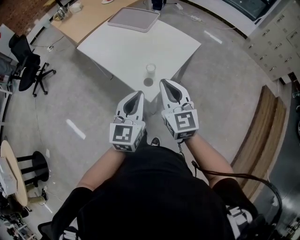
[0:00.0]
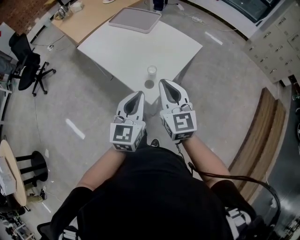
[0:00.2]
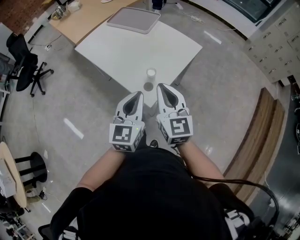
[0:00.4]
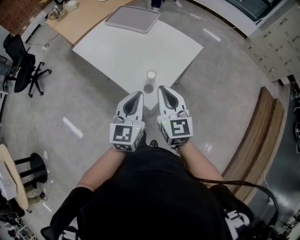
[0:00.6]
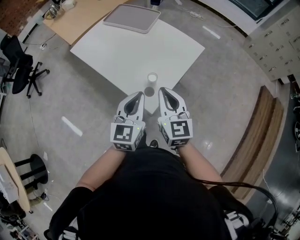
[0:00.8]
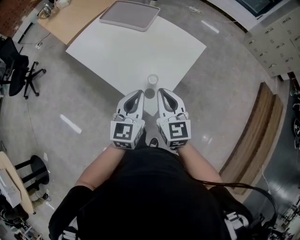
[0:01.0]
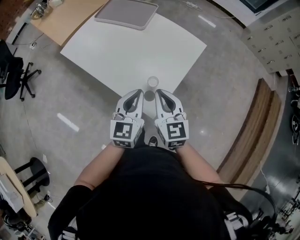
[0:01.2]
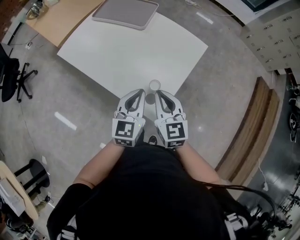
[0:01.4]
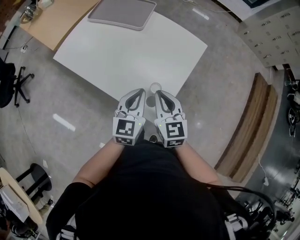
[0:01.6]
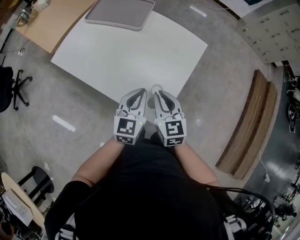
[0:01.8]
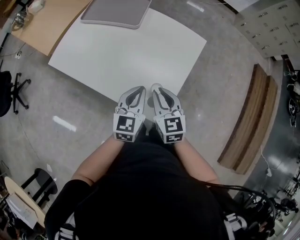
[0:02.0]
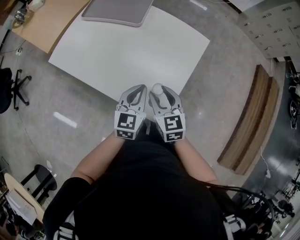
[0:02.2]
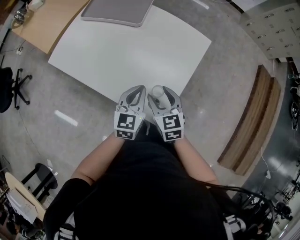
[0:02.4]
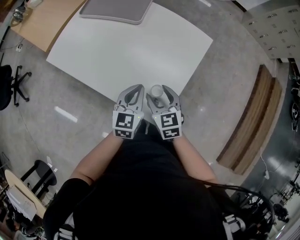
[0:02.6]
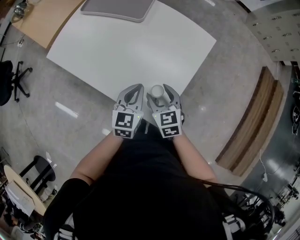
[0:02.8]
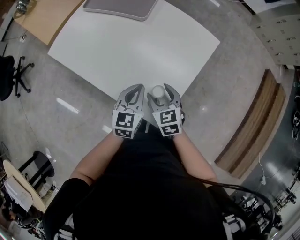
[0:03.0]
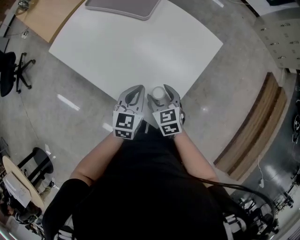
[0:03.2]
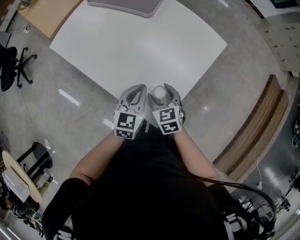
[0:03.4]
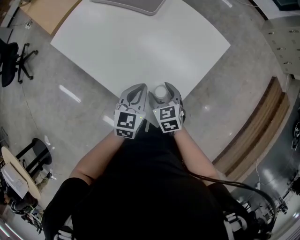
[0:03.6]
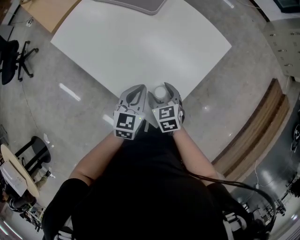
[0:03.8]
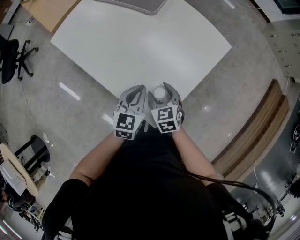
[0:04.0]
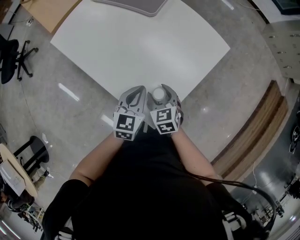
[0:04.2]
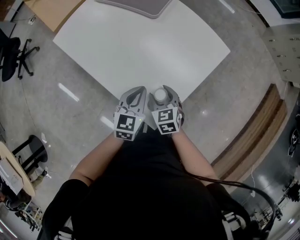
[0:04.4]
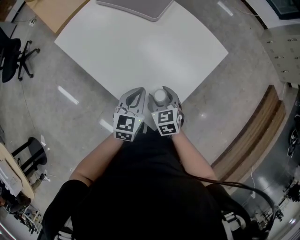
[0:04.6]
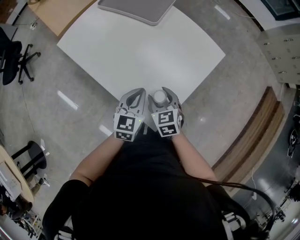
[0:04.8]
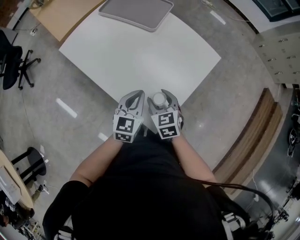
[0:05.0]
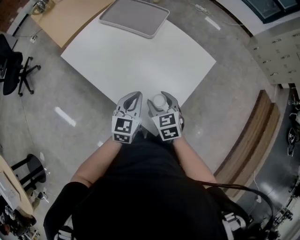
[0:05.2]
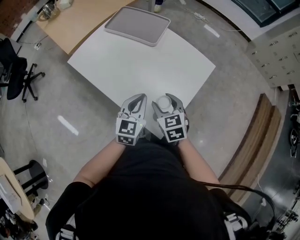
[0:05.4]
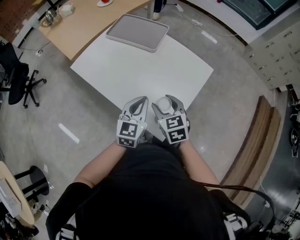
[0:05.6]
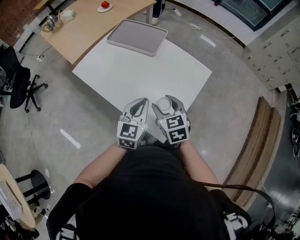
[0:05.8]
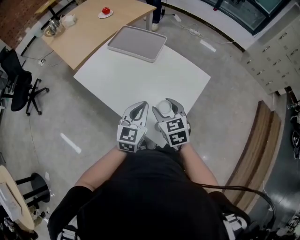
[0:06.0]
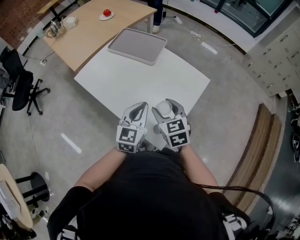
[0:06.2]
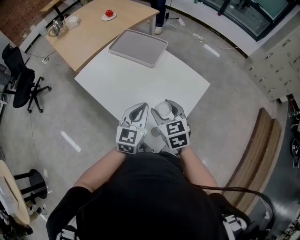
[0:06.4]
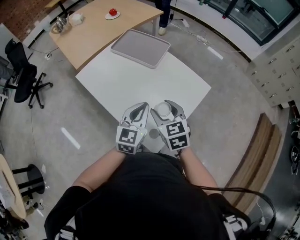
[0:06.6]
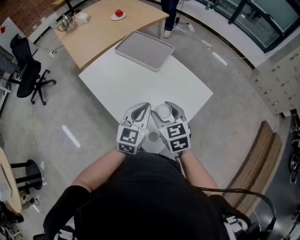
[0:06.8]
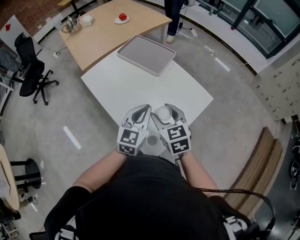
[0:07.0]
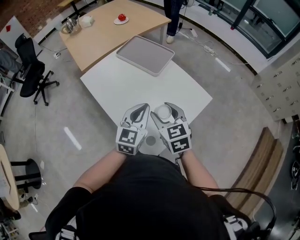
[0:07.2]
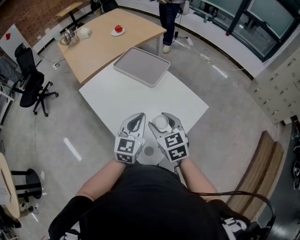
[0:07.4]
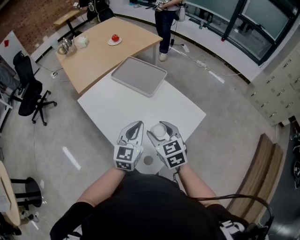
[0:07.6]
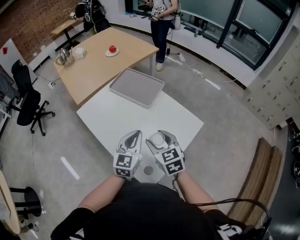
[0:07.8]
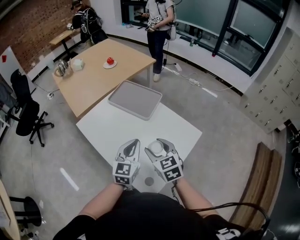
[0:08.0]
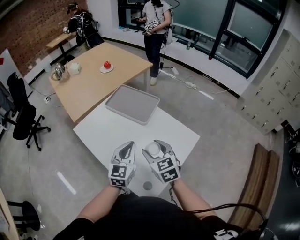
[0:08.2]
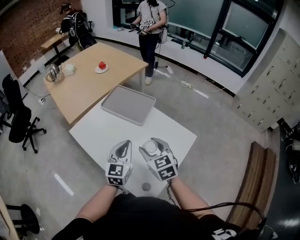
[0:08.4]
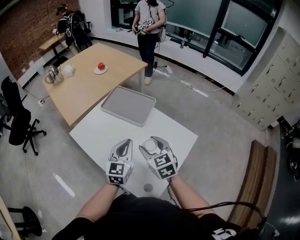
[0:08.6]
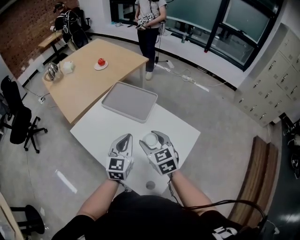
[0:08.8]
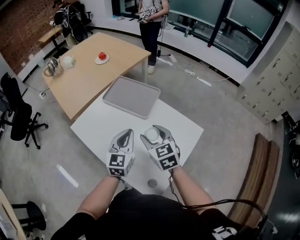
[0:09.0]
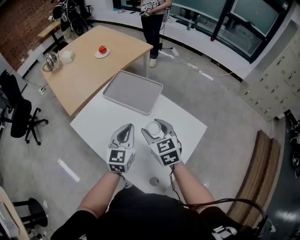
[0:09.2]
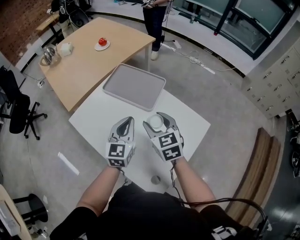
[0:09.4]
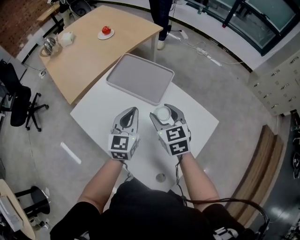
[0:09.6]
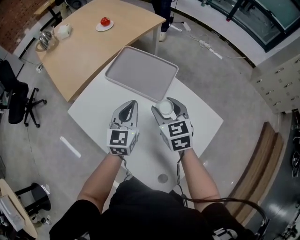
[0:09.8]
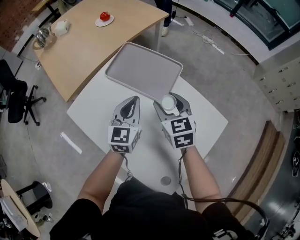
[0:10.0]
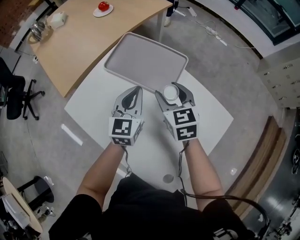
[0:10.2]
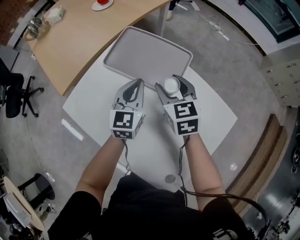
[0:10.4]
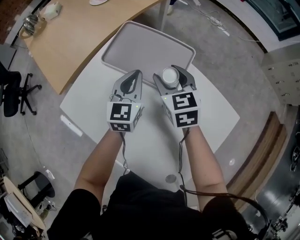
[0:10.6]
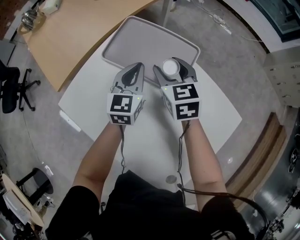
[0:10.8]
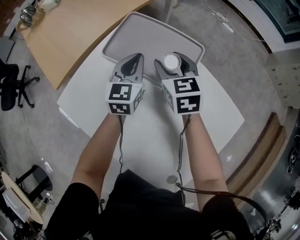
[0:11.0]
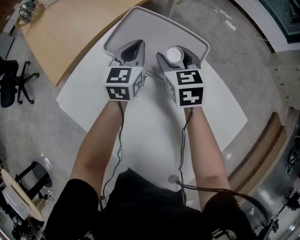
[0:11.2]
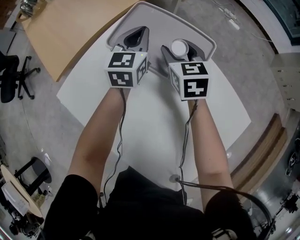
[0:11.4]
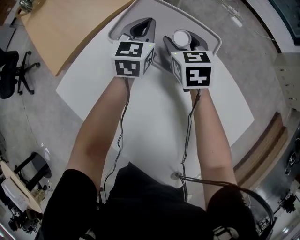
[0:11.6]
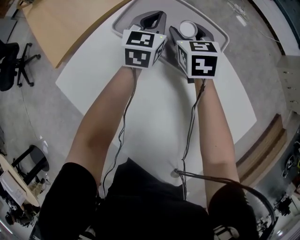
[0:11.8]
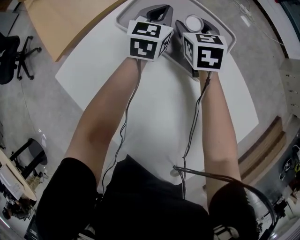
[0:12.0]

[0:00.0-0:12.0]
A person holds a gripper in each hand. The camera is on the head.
0:00.0 to 0:01.6: The left gripper goes some 25 cm forward and downward, while the right gripper travels forward, downward and to the left by about 25 cm, and swivels roughly 20 degrees.
0:01.6 to 0:03.0: The left gripper goes some 10 cm downward and forward. Meanwhile the right gripper heads downward, covering some 15 cm, rotates about 20 degrees, and opens its fingers.
0:03.0 to 0:04.4: The grippers stay close to where they were, moving slightly.
0:04.4 to 0:06.0: The grippers both shift upward by roughly 20 cm.
0:06.0 to 0:07.6: The two grippers go roughly 5 cm forward.
0:07.6 to 0:09.0: Both grippers travel together forward, about 10 cm.
0:09.0 to 0:10.4: Both grippers travel together forward and downward, roughly 30 cm.
0:10.4 to 0:12.0: Both grippers travel together forward and downward, approximately 20 cm.

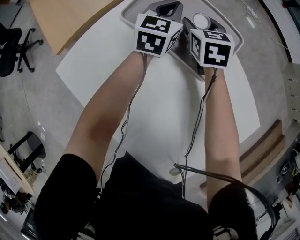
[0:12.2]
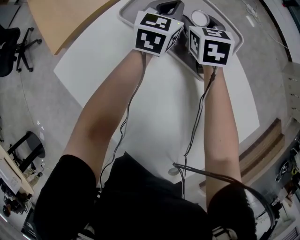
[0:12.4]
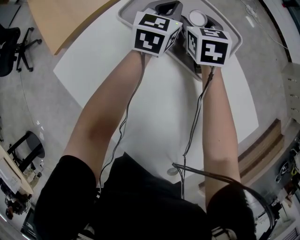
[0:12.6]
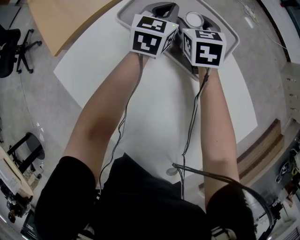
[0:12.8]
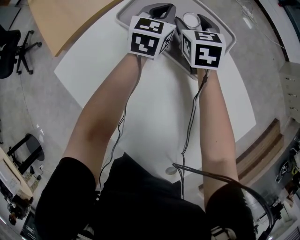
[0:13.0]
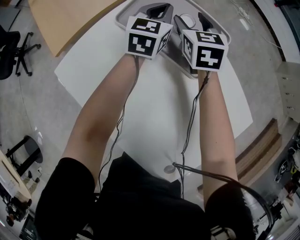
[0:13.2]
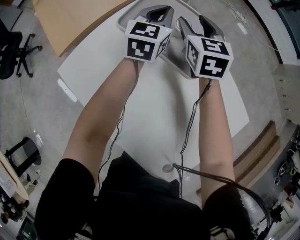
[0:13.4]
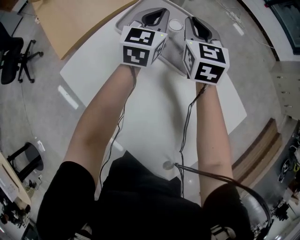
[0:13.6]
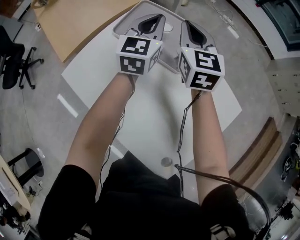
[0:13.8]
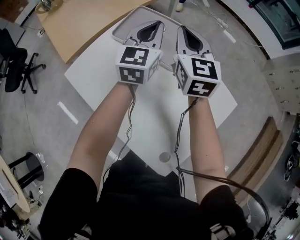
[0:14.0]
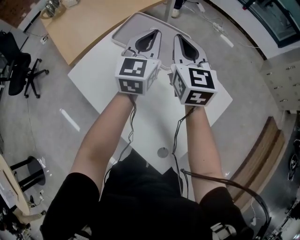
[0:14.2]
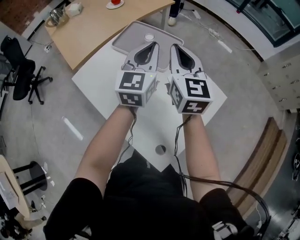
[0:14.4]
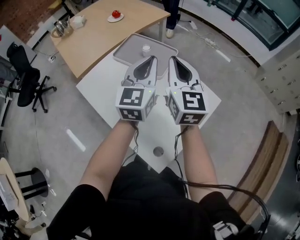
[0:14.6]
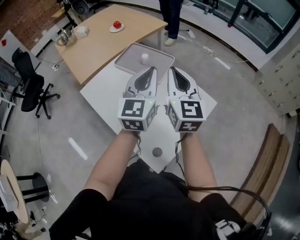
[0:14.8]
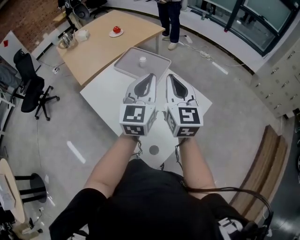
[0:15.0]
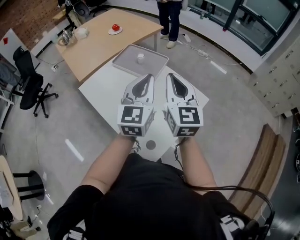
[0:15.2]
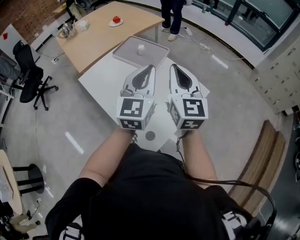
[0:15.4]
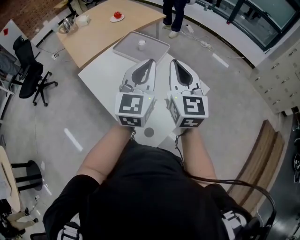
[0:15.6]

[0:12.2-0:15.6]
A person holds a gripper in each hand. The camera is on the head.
0:12.2 to 0:13.8: Both grippers move upward and backward, some 20 cm. The right gripper changes its angle by some 20 degrees, and closes its fingers.
0:13.8 to 0:15.6: The pair of grippers is taken backward and to the right, some 40 cm. The grippers both shift upward by some 20 cm.

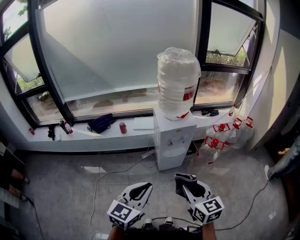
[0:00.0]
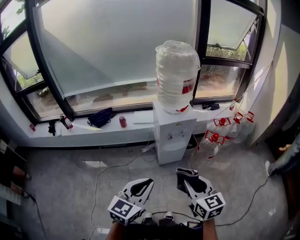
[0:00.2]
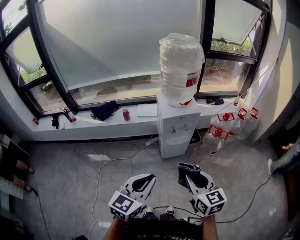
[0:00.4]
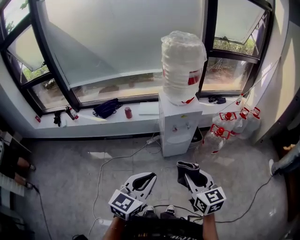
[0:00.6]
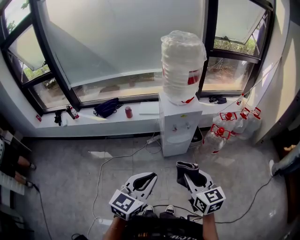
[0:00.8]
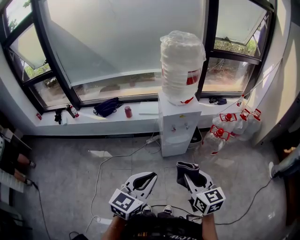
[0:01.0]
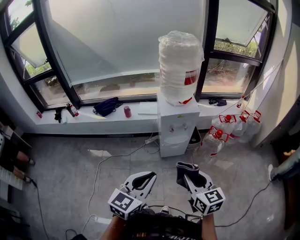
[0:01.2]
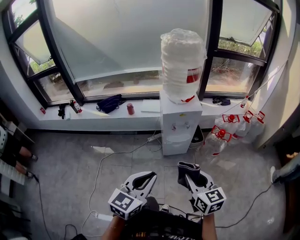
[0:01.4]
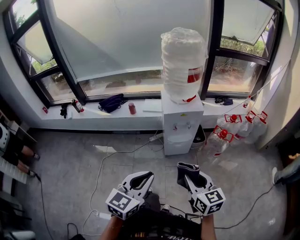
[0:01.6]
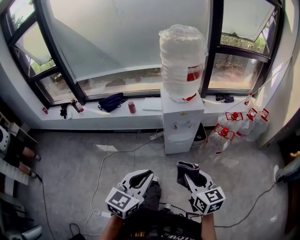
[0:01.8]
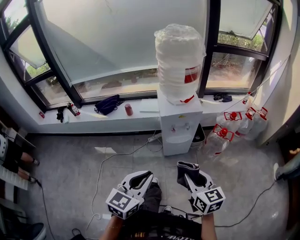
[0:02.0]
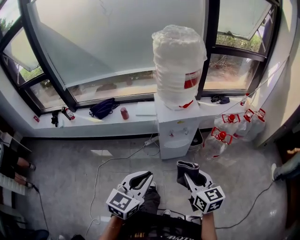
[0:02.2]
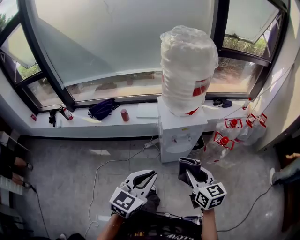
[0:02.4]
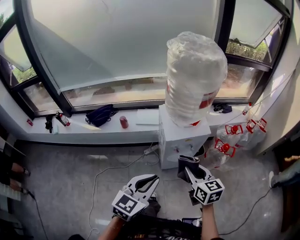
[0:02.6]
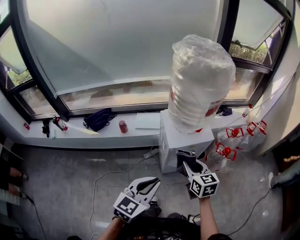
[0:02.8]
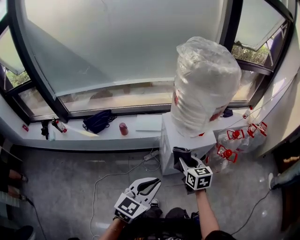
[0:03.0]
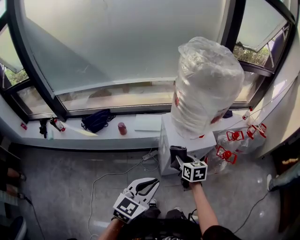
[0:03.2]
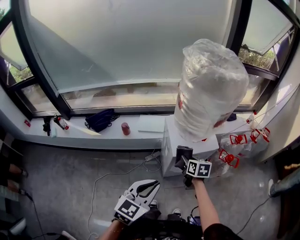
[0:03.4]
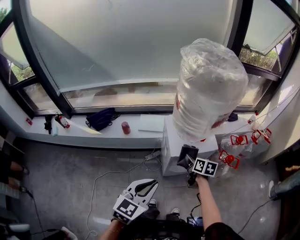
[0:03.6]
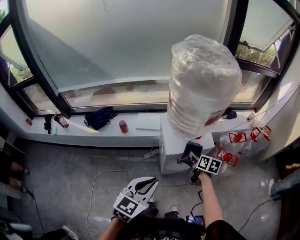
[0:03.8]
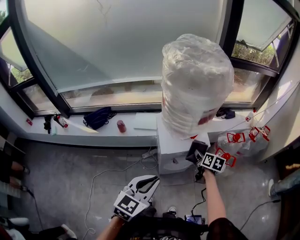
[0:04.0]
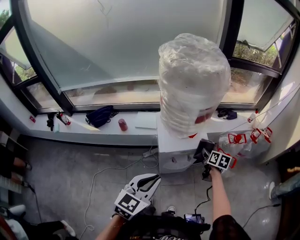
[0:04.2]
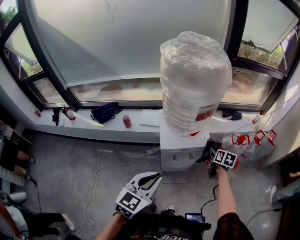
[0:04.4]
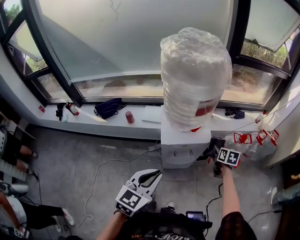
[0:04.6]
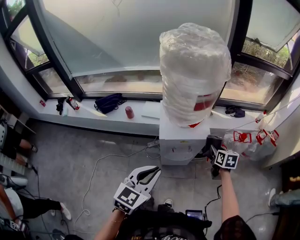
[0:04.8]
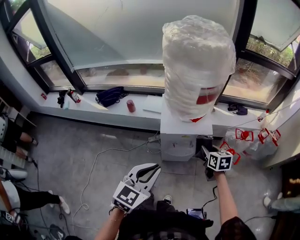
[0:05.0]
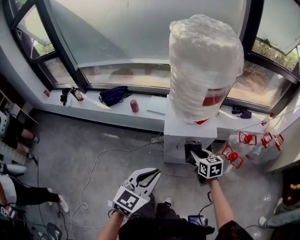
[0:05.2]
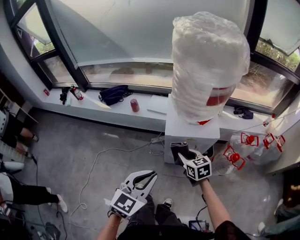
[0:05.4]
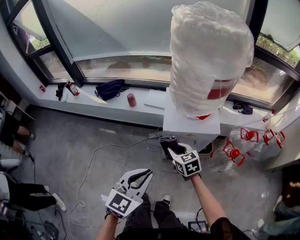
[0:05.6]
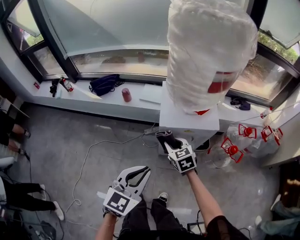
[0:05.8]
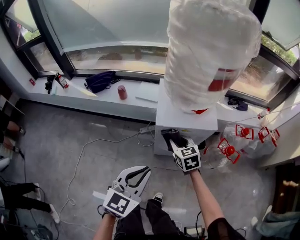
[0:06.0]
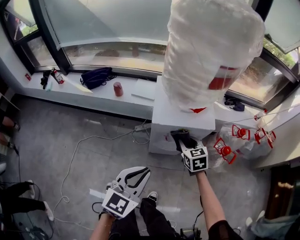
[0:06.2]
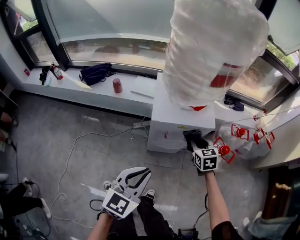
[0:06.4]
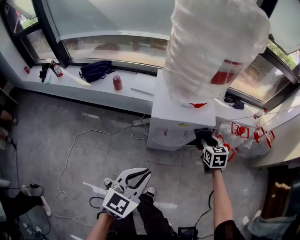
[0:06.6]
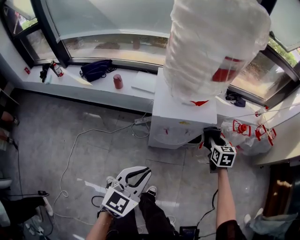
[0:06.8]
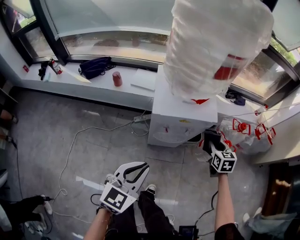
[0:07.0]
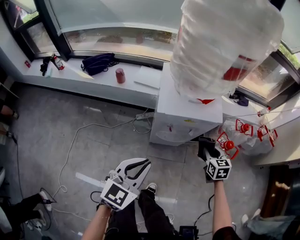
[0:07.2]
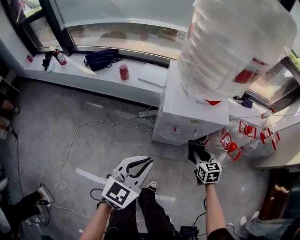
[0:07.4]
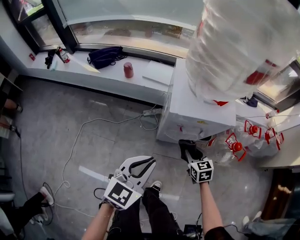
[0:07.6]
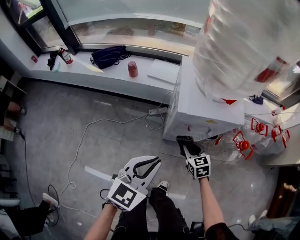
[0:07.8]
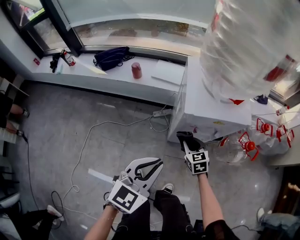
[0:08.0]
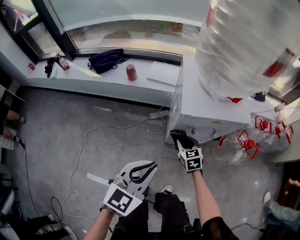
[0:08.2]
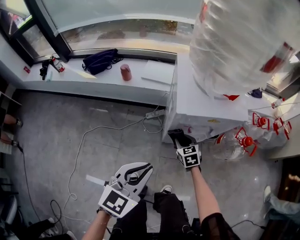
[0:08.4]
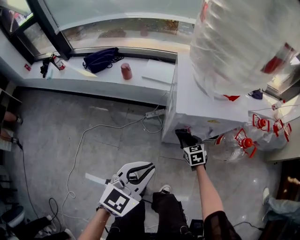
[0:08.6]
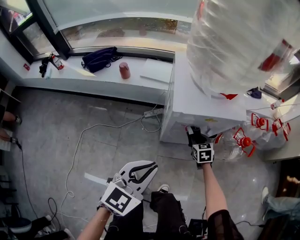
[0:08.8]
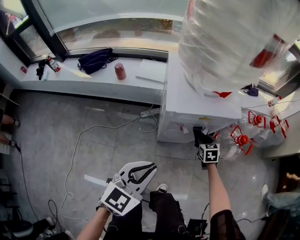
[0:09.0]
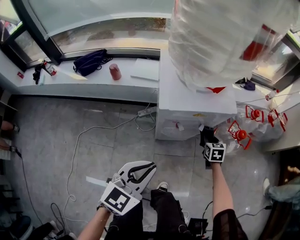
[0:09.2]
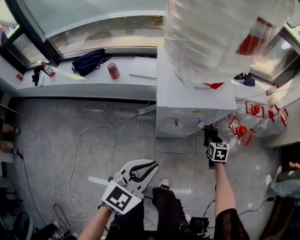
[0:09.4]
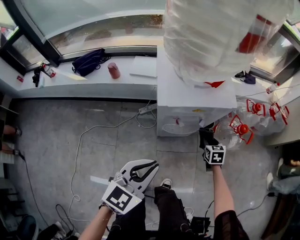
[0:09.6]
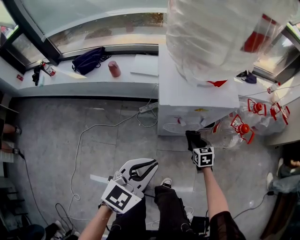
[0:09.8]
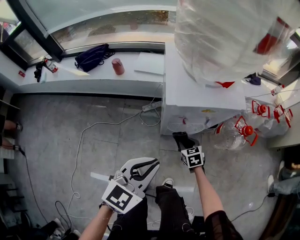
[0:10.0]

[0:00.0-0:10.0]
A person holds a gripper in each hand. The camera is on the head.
0:00.0 to 0:01.4: The grippers both shift to the right by some 10 cm.
0:01.4 to 0:02.8: Both grippers move forward, roughly 30 cm.
0:02.8 to 0:04.2: The right gripper is displaced forward, to the right and downward by roughly 25 cm, and changes its angle by some 30 degrees, while the left gripper moves to the right and forward, roughly 10 cm.
0:04.2 to 0:05.8: The right gripper moves roughly 25 cm, and rolls counterclockwise, seen from behind, by some 50 degrees. Meanwhile the left gripper shifts roughly 10 cm downward.
0:05.8 to 0:07.2: The right gripper is displaced to the right by approximately 25 cm, and rotates roughly 20 degrees, while the left gripper goes roughly 5 cm downward.
0:07.2 to 0:08.6: The left gripper moves downward, approximately 5 cm, while the right gripper heads to the left and downward, covering roughly 25 cm.
0:08.6 to 0:10.0: The right gripper travels to the right and back again, roughly 20 cm each way.
